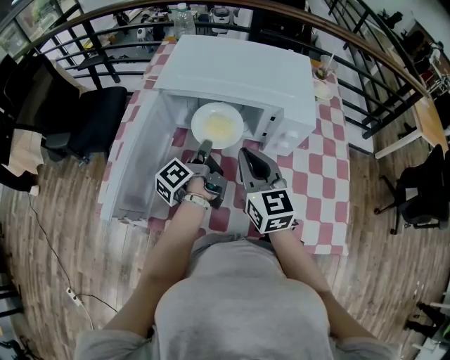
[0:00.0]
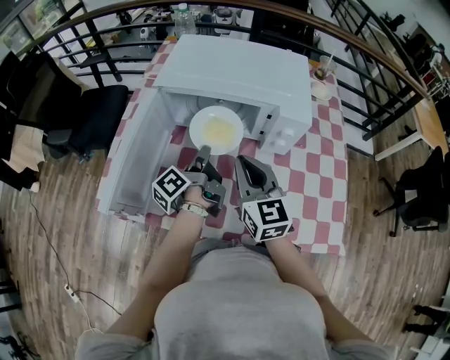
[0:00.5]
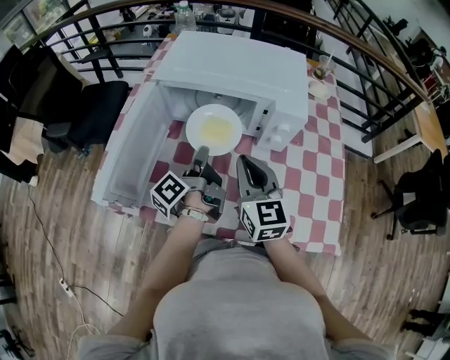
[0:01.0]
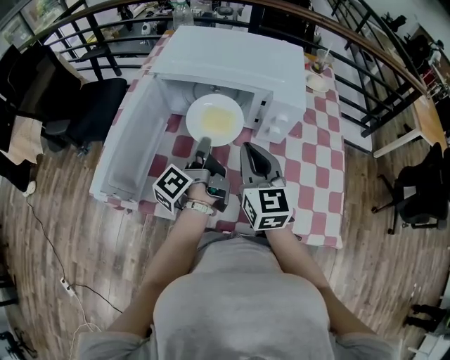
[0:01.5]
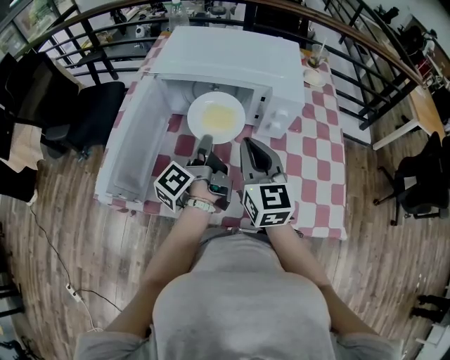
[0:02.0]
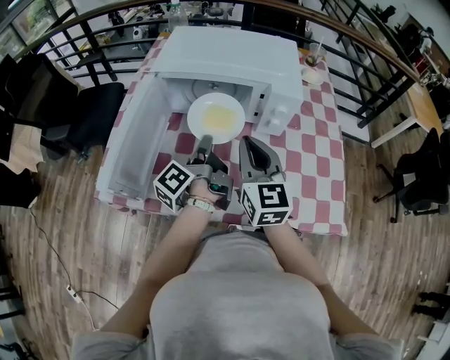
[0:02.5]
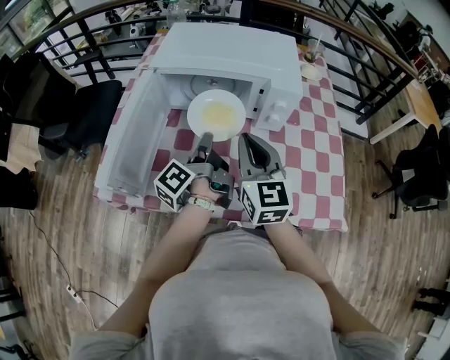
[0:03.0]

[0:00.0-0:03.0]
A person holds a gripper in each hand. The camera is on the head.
0:00.0 to 0:01.5: The right gripper moves approximately 5 cm; the left gripper is displaced backward by roughly 5 cm.
0:01.5 to 0:03.0: The grippers move only a little.

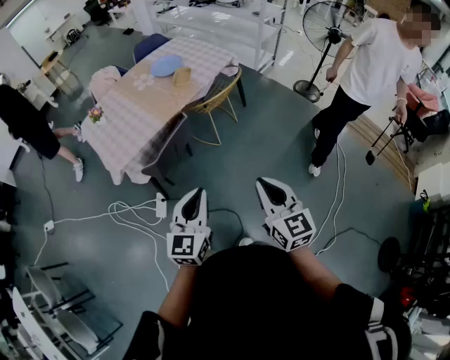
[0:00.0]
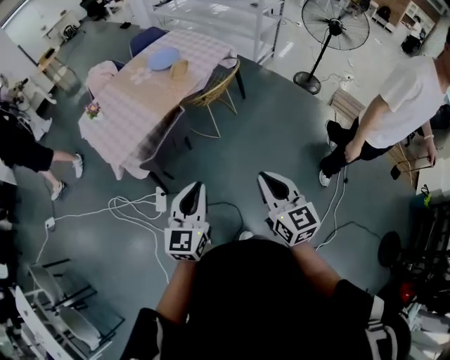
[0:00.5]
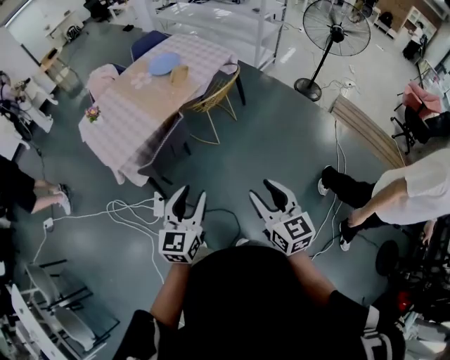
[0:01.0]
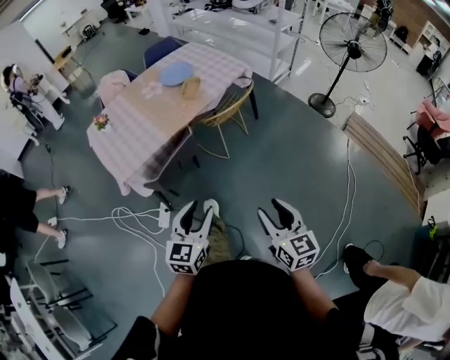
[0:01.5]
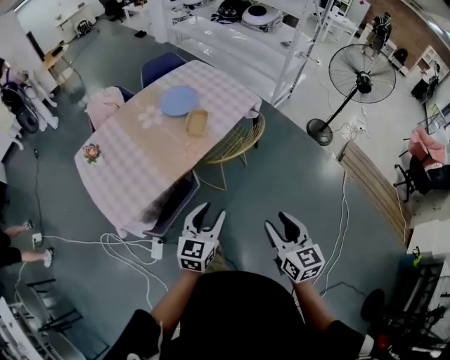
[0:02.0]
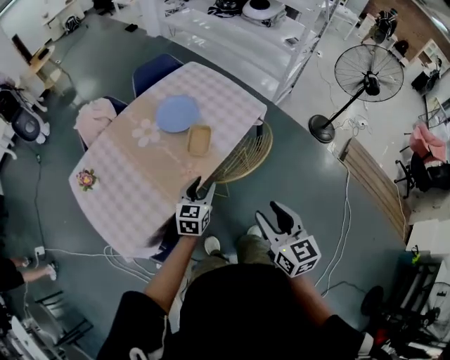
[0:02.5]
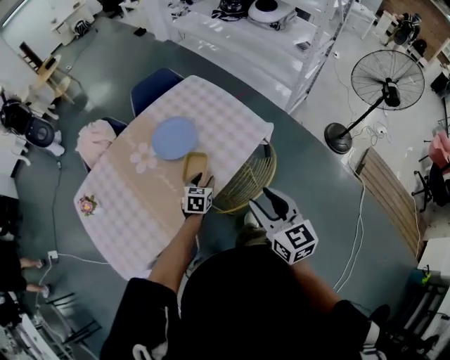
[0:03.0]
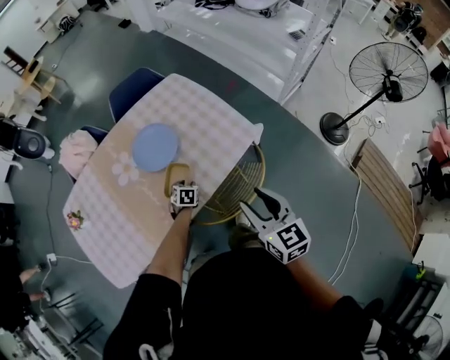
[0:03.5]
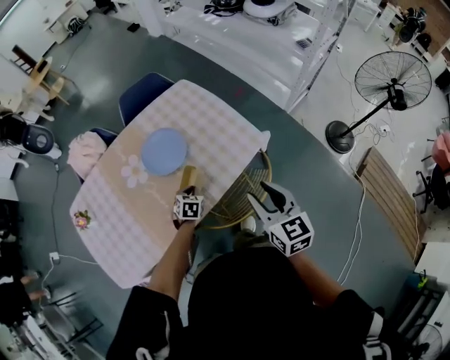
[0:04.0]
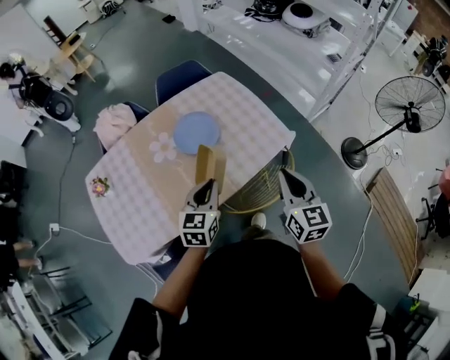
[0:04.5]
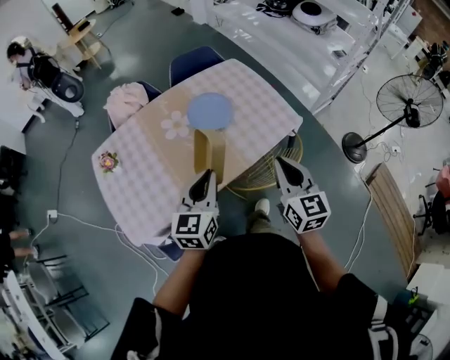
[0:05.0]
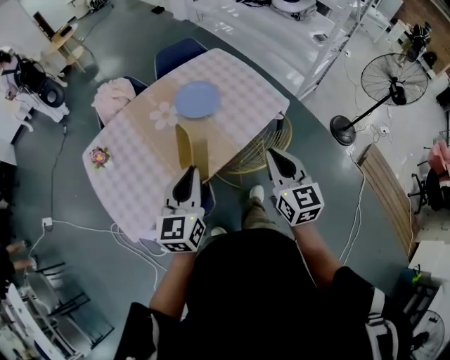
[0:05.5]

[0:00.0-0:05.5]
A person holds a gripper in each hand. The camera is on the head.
0:00.0 to 0:02.0: The two grippers go approximately 35 cm forward. The left gripper opens up; the right gripper opens its fingers.
0:02.0 to 0:03.5: The two grippers travel together, forward, approximately 50 cm. The left gripper travels downward by roughly 35 cm, and points its fingers about 40 degrees further downward.
0:03.5 to 0:05.5: The left gripper moves upward and backward, some 50 cm, tilts its fingers about 50 degrees upward, and closes its fingers, while the right gripper travels to the left, backward and upward by about 20 cm, and closes its fingers.

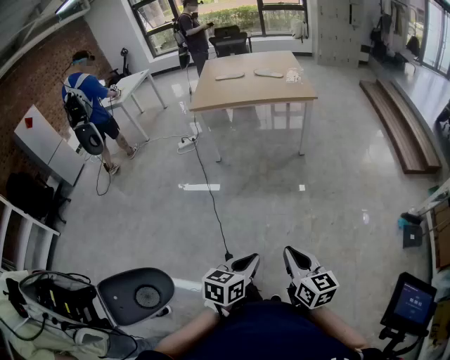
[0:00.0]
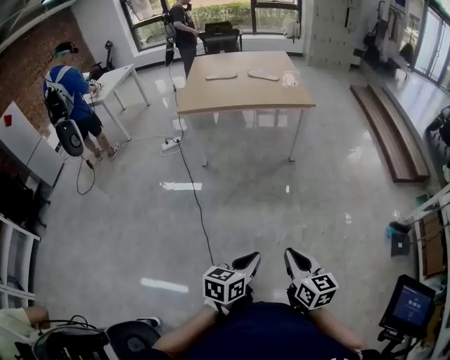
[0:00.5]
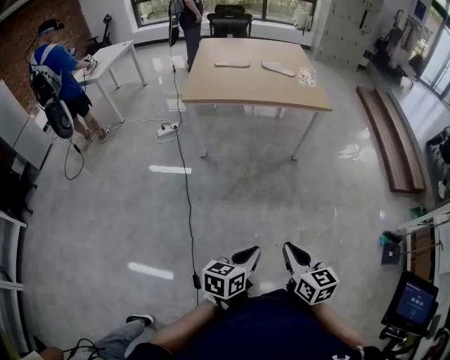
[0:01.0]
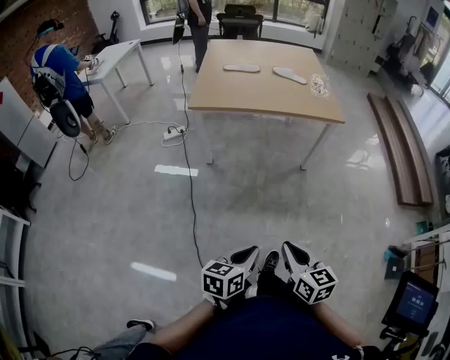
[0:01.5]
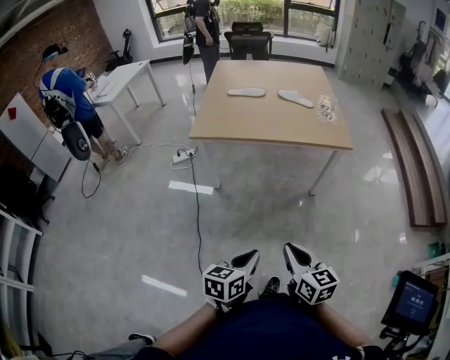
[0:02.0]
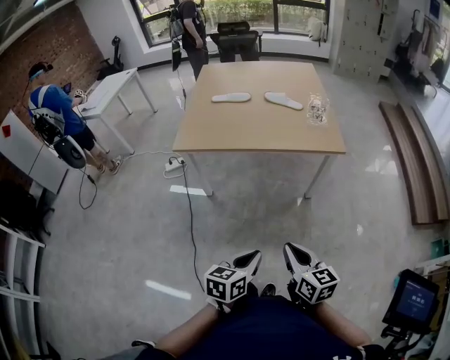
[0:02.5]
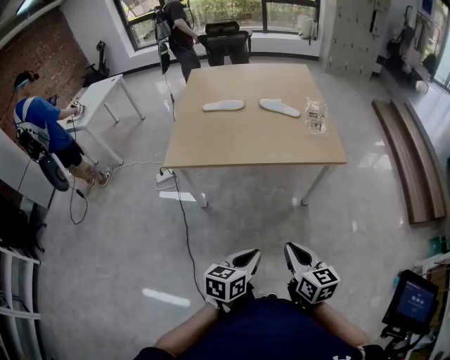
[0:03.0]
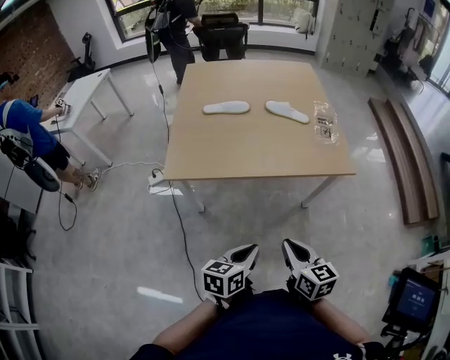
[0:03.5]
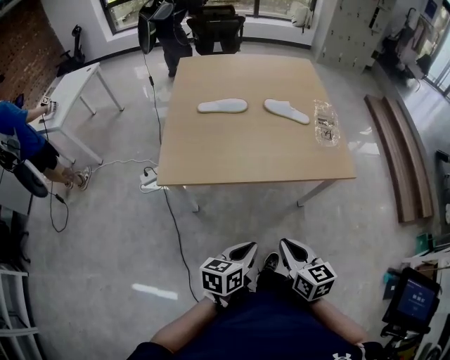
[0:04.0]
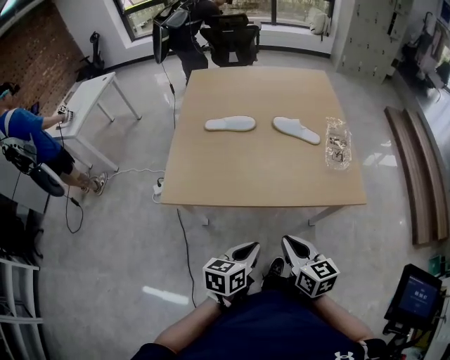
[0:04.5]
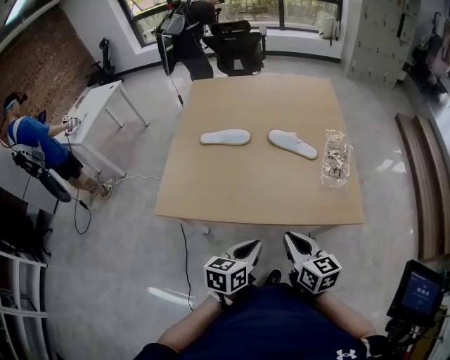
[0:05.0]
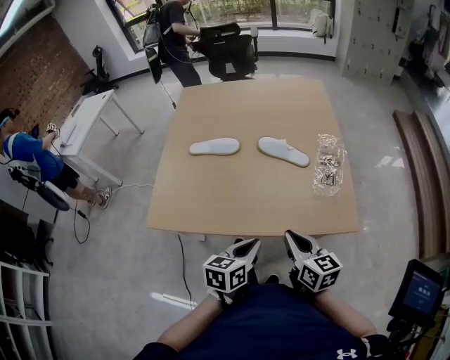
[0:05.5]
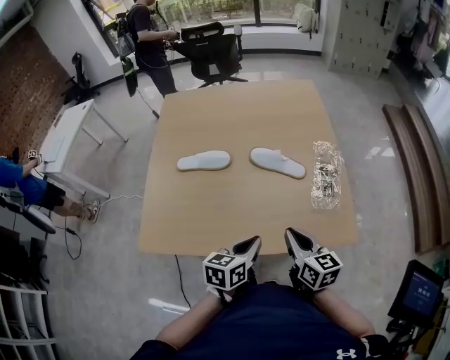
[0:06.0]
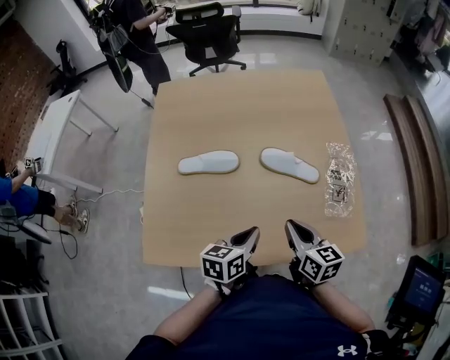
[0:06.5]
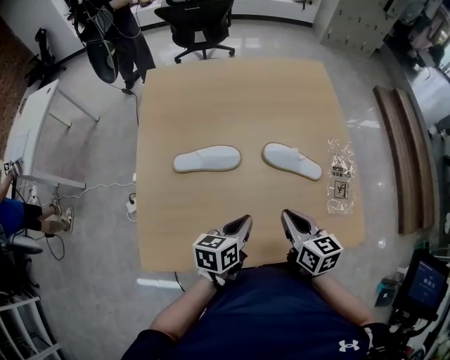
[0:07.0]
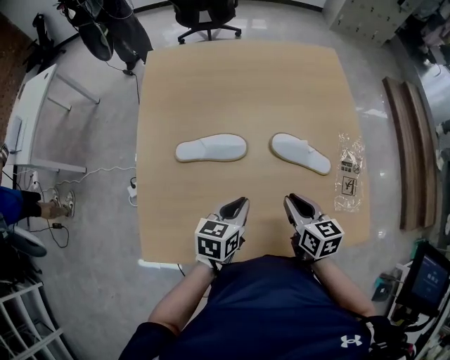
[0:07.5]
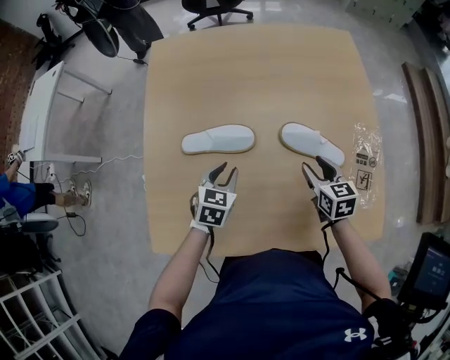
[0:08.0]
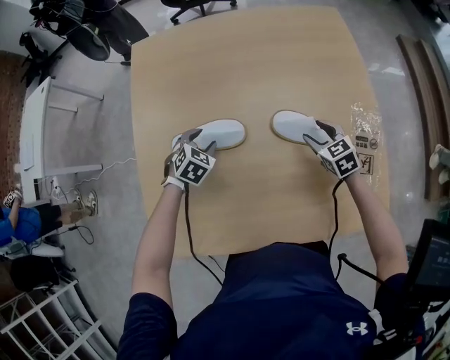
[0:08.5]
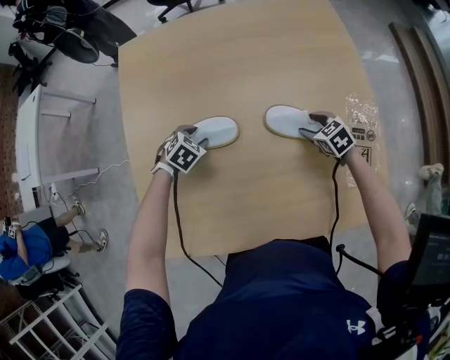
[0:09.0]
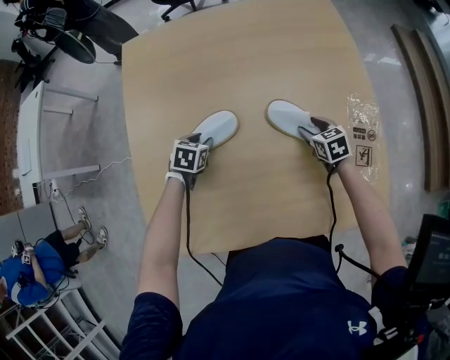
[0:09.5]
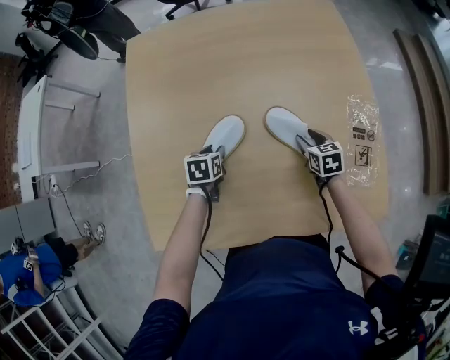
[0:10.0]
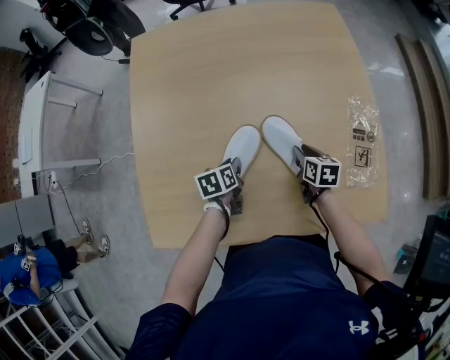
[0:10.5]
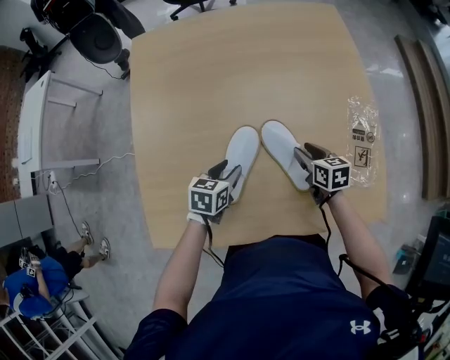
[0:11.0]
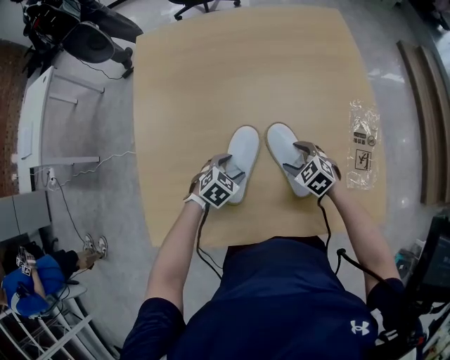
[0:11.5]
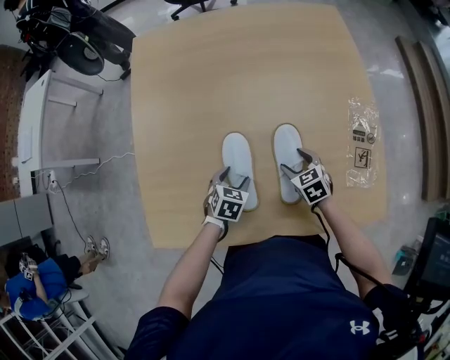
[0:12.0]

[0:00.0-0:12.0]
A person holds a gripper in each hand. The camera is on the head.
0:00.0 to 0:02.0: The two grippers travel together, forward, approximately 50 cm.
0:02.0 to 0:04.0: The grippers both shift forward by roughly 30 cm.
0:04.0 to 0:06.0: The grippers both shift forward by about 30 cm.
0:06.0 to 0:08.0: The right gripper moves forward and downward, about 25 cm, changes its angle by about 20 degrees, and opens its fingers. The left gripper shifts approximately 35 cm forward, to the left and downward, rotates roughly 30 degrees, and opens its fingers.
0:08.0 to 0:10.0: Both grippers move downward, some 10 cm. The left gripper travels forward and back again, about 10 cm each way, and rotates roughly 30 degrees.
0:10.0 to 0:12.0: The right gripper goes approximately 10 cm backward and to the left, rotates roughly 20 degrees, and opens its fingers. Meanwhile the left gripper is displaced backward and to the right by approximately 10 cm, turns by some 30 degrees, and opens its fingers.

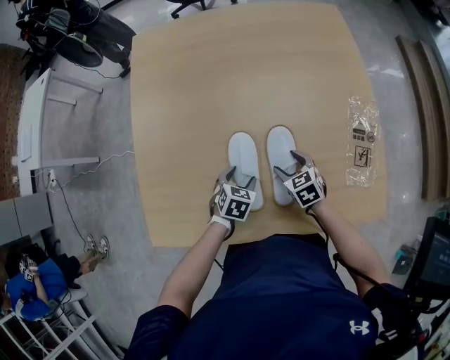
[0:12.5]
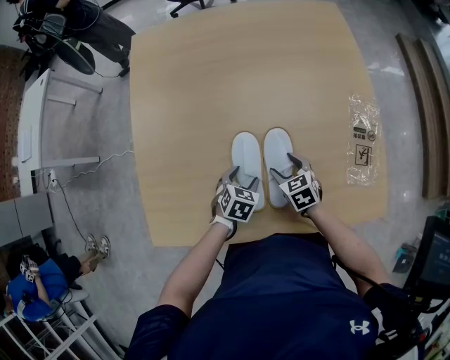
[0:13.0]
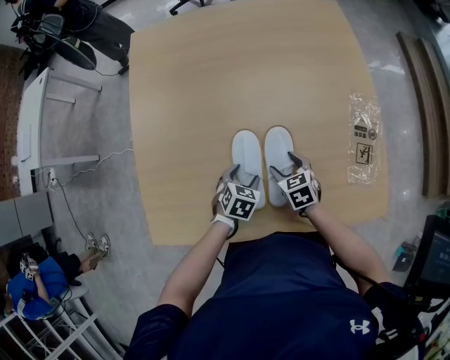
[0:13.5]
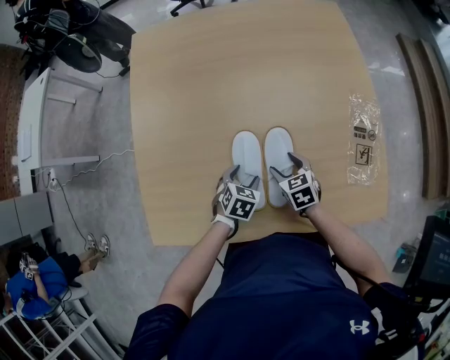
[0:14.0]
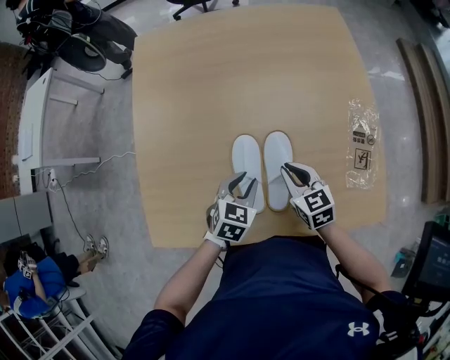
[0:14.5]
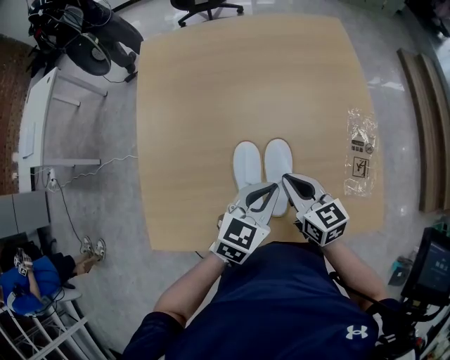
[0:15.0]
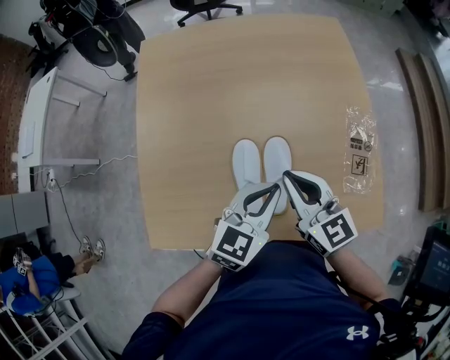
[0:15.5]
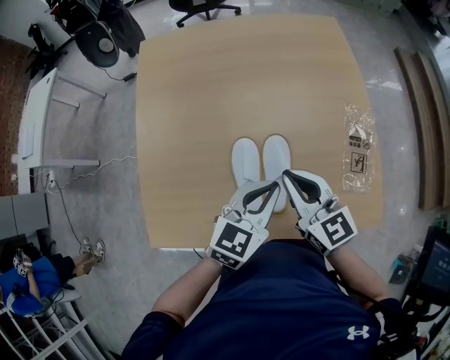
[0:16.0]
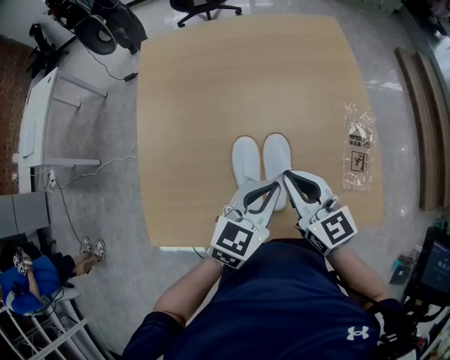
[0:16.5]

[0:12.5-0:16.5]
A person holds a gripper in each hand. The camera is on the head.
0:12.5 to 0:14.5: The two grippers go approximately 10 cm upward. The left gripper closes its fingers. Meanwhile the right gripper closes up.
0:14.5 to 0:16.5: The left gripper travels upward and to the right by approximately 15 cm, rotates approximately 20 degrees, and closes. Meanwhile the right gripper goes about 15 cm upward, and changes its angle by some 20 degrees.

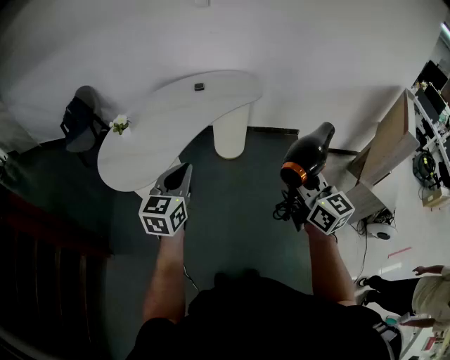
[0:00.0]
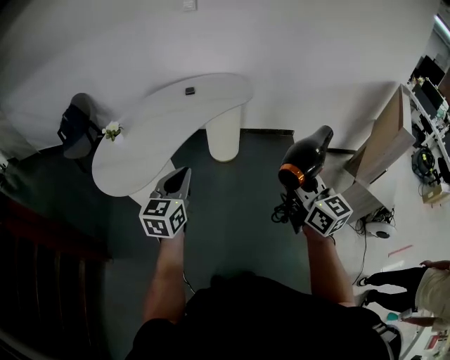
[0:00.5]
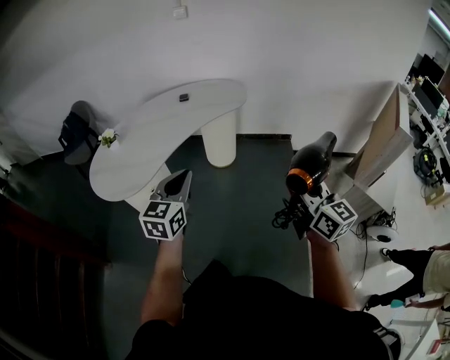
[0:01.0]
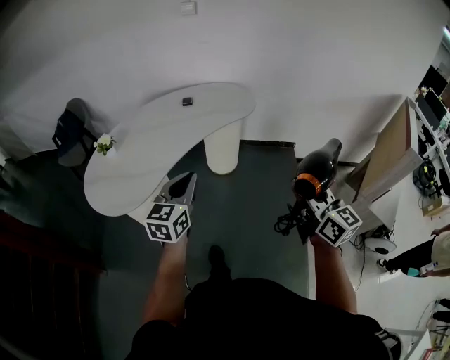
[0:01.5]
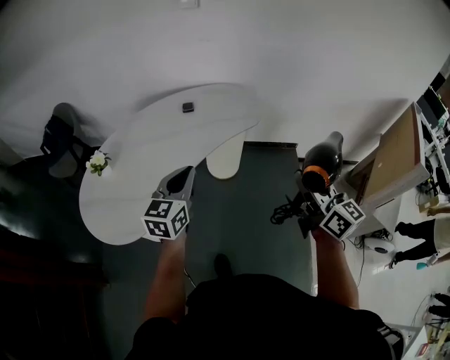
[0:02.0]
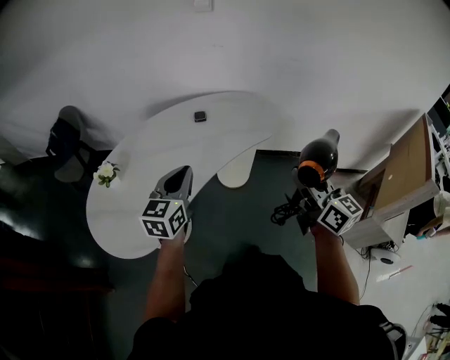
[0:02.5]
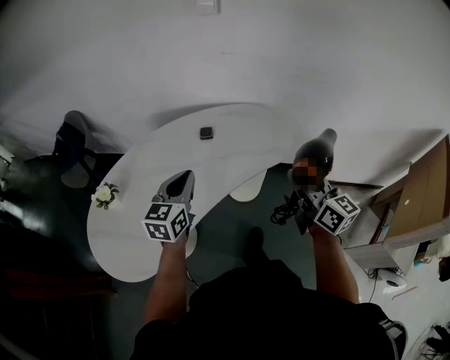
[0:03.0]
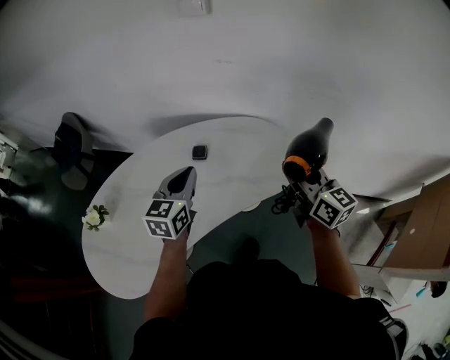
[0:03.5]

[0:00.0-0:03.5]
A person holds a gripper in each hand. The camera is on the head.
0:00.0 to 0:02.0: Both grippers travel together forward, some 25 cm.
0:02.0 to 0:03.5: The two grippers go some 40 cm forward.
